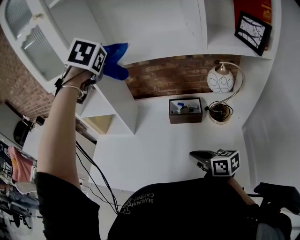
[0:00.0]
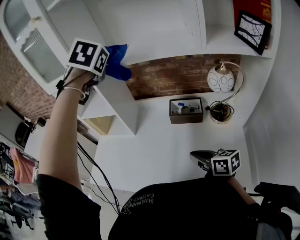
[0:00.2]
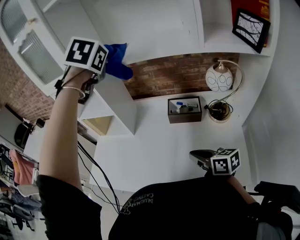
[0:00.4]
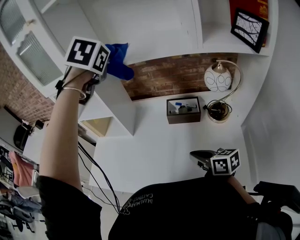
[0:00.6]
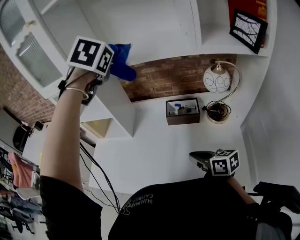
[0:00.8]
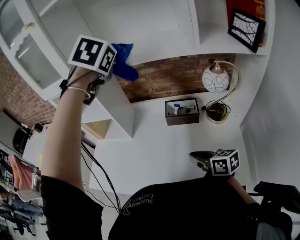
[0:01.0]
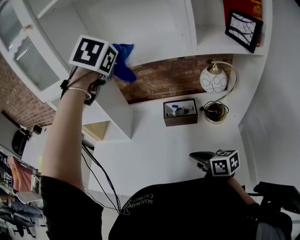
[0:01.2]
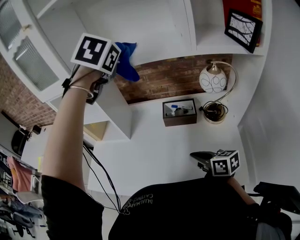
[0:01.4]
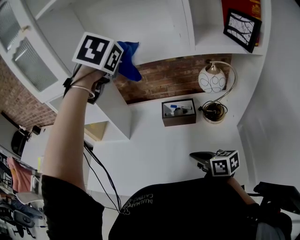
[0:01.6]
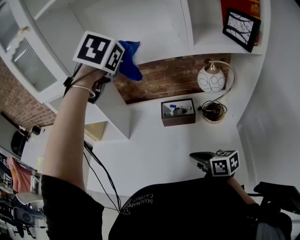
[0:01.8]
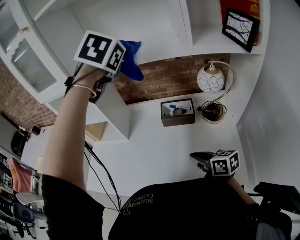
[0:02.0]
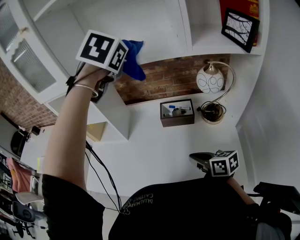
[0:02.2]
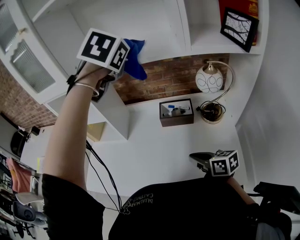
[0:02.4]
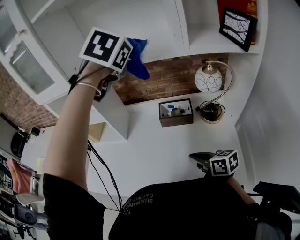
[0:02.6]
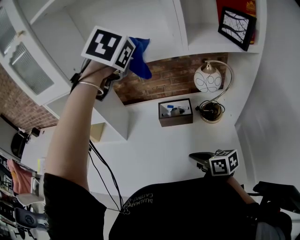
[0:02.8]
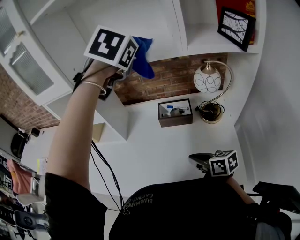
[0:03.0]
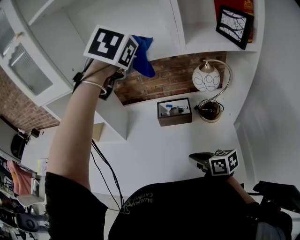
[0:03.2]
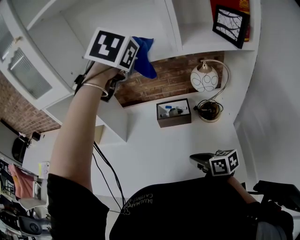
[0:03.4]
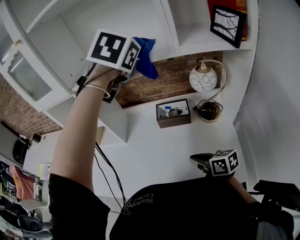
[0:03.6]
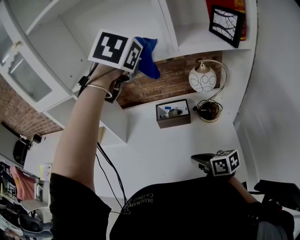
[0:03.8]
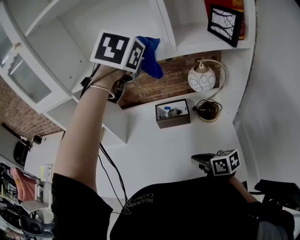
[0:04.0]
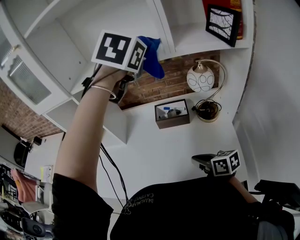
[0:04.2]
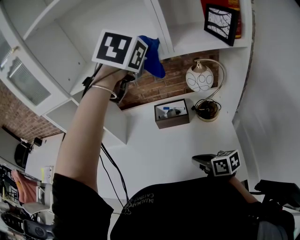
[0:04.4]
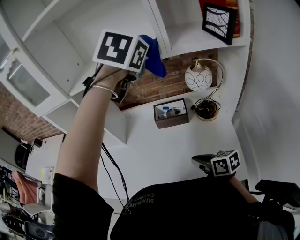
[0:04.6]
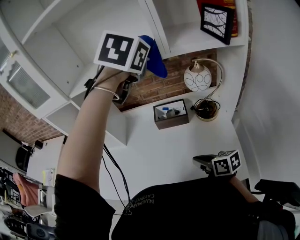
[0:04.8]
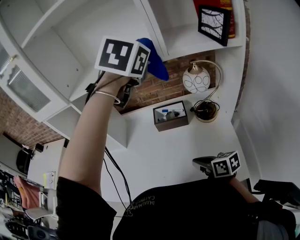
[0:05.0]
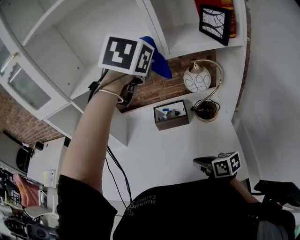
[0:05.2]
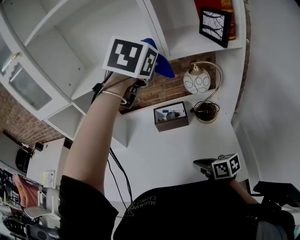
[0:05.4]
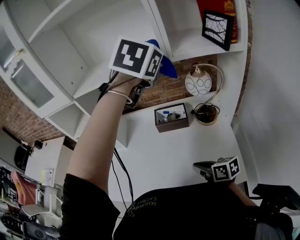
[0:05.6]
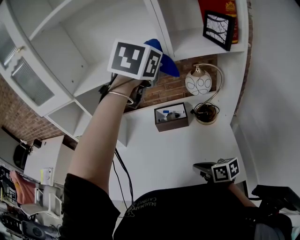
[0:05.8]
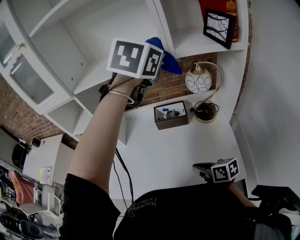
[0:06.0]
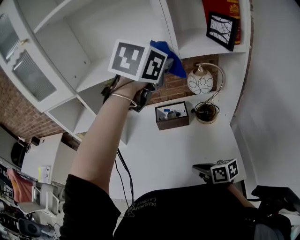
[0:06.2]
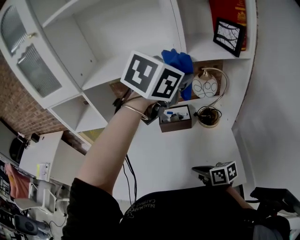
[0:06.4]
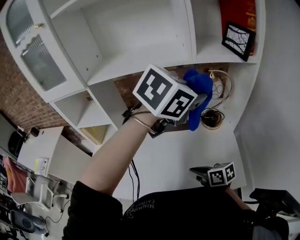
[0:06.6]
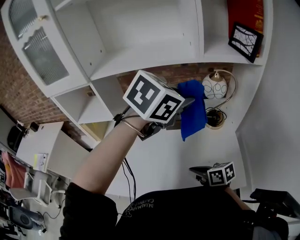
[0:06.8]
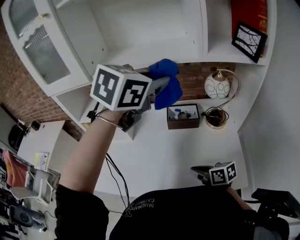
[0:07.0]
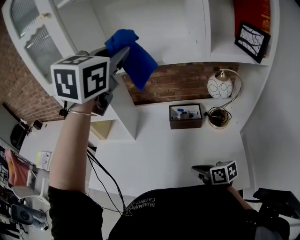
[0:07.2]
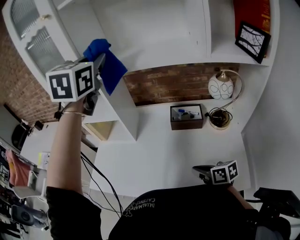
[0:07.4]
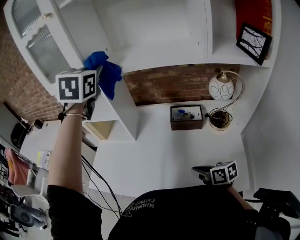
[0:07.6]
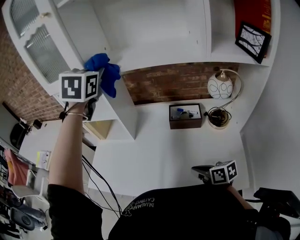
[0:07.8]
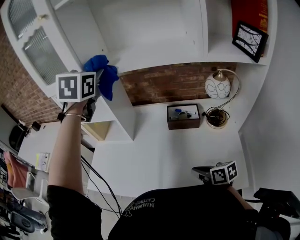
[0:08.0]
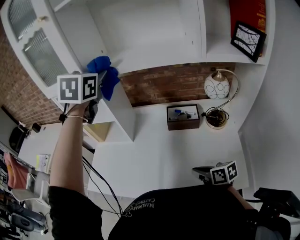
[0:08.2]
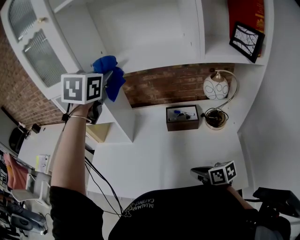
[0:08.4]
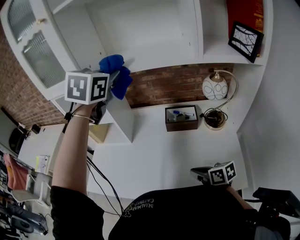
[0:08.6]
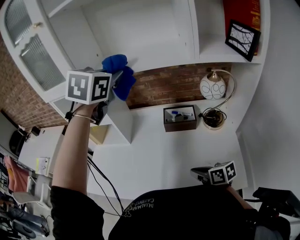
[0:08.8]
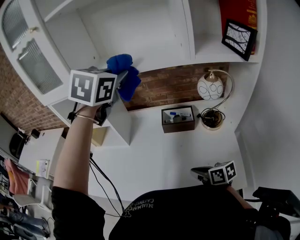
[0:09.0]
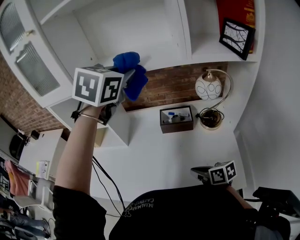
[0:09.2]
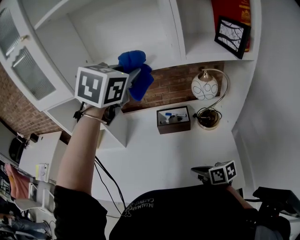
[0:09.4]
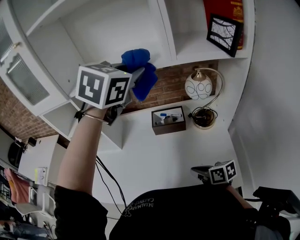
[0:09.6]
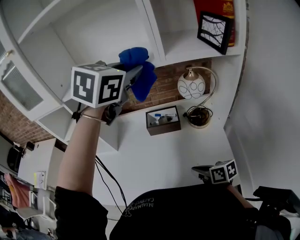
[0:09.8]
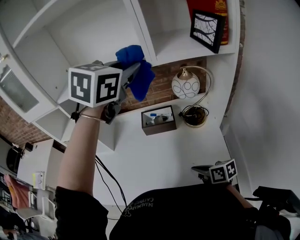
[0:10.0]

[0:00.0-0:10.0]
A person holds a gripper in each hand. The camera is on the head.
0:00.0 to 0:01.4: The left gripper goes some 10 cm to the right.
0:01.4 to 0:02.8: The left gripper heads to the right, covering some 5 cm.
0:02.8 to 0:04.2: The left gripper goes approximately 5 cm to the right.
0:04.2 to 0:05.8: The left gripper moves roughly 5 cm.
0:05.8 to 0:07.2: The left gripper shifts some 20 cm to the left. The right gripper goes about 5 cm to the left.
0:07.2 to 0:08.6: The left gripper moves downward and forward, some 10 cm.
0:08.6 to 0:10.0: The right gripper goes roughly 10 cm to the right, while the left gripper heads to the right, covering some 25 cm, and rotates approximately 20 degrees.

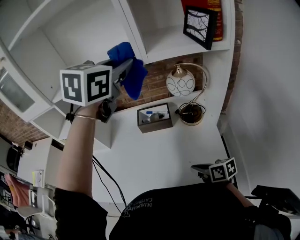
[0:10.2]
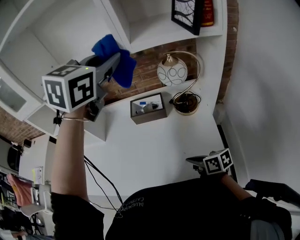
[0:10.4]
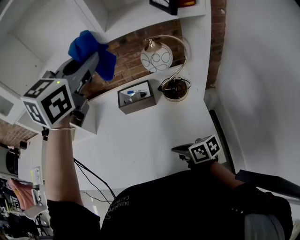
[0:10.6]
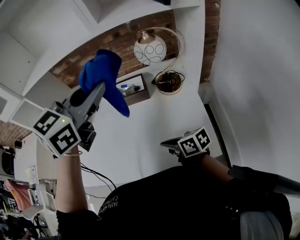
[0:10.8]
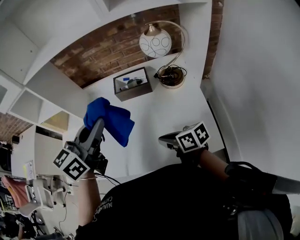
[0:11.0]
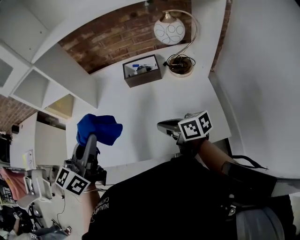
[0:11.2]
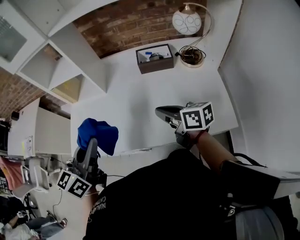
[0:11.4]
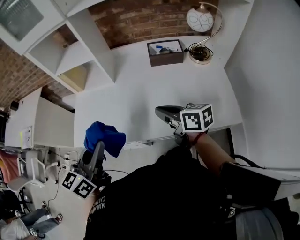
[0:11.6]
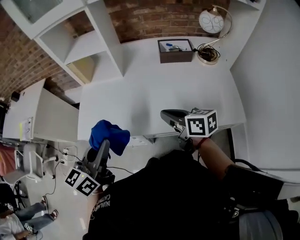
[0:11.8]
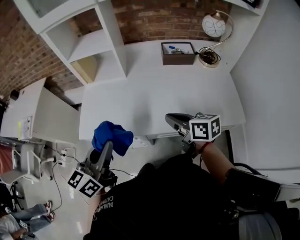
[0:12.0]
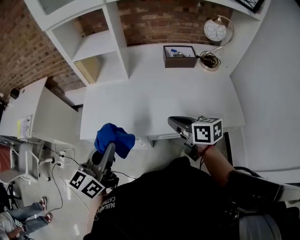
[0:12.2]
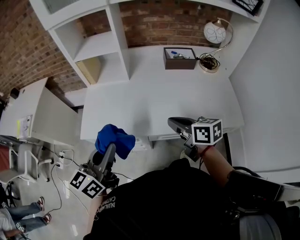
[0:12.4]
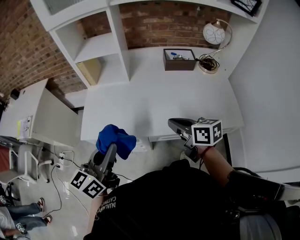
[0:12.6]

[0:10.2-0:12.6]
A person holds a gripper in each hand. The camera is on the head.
0:10.2 to 0:11.4: The left gripper travels to the left, backward and downward by about 50 cm, and swivels about 40 degrees. Meanwhile the right gripper shifts roughly 20 cm to the left.
0:11.4 to 0:12.6: The left gripper shifts about 15 cm to the left, backward and downward. The right gripper shifts approximately 15 cm to the left and backward.

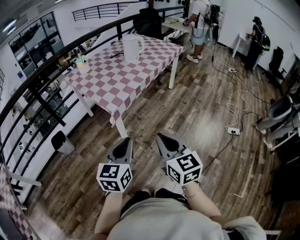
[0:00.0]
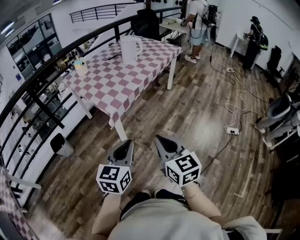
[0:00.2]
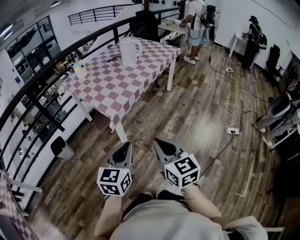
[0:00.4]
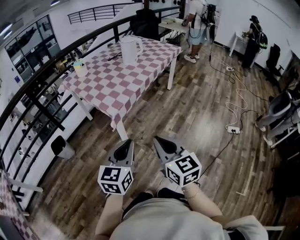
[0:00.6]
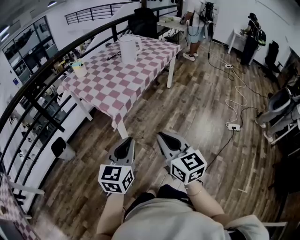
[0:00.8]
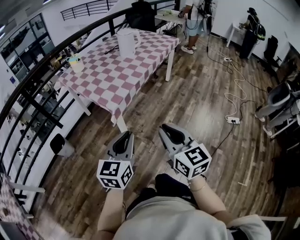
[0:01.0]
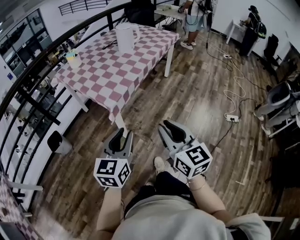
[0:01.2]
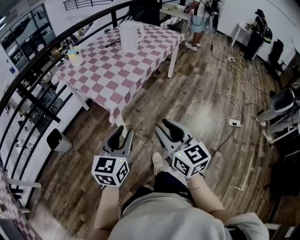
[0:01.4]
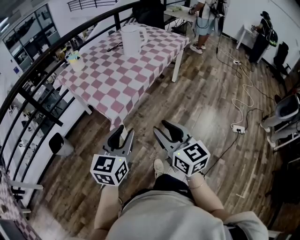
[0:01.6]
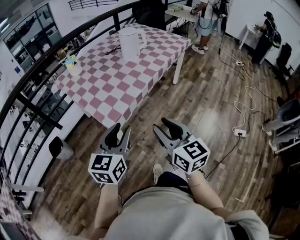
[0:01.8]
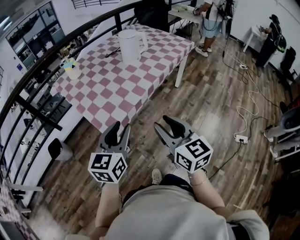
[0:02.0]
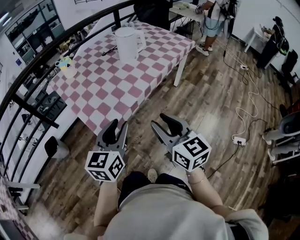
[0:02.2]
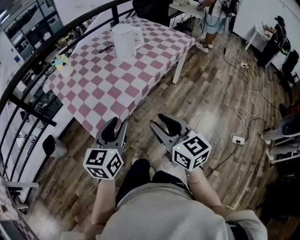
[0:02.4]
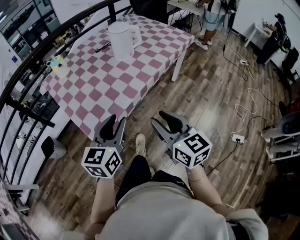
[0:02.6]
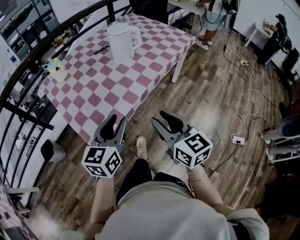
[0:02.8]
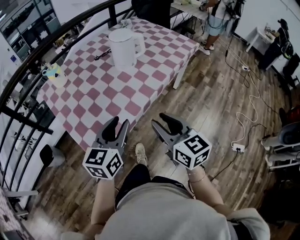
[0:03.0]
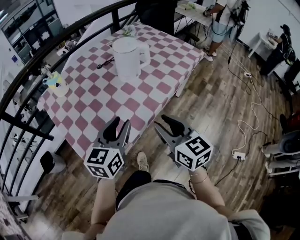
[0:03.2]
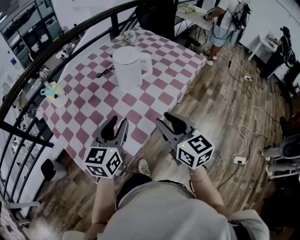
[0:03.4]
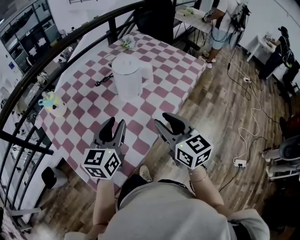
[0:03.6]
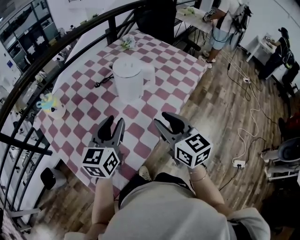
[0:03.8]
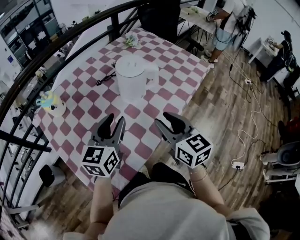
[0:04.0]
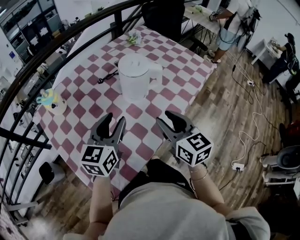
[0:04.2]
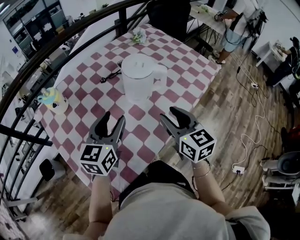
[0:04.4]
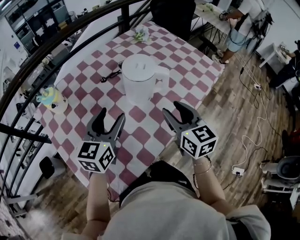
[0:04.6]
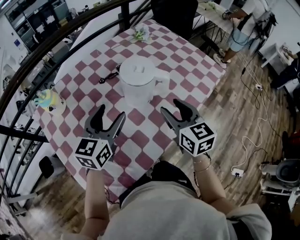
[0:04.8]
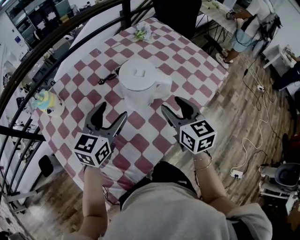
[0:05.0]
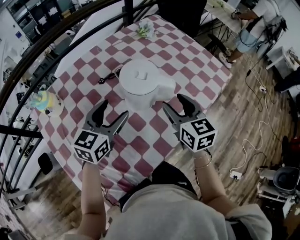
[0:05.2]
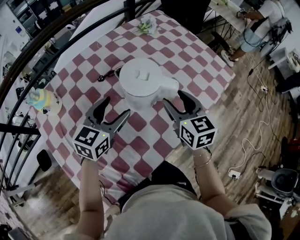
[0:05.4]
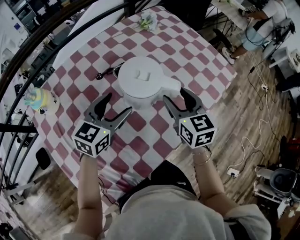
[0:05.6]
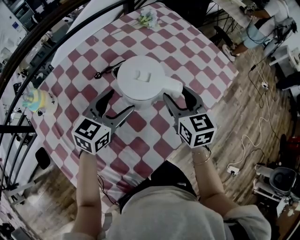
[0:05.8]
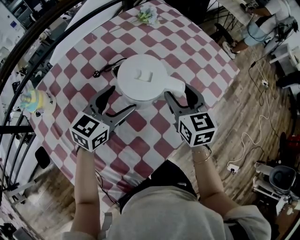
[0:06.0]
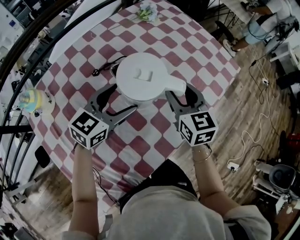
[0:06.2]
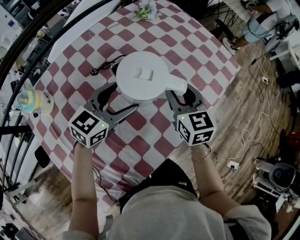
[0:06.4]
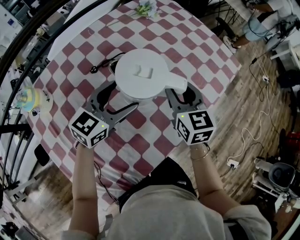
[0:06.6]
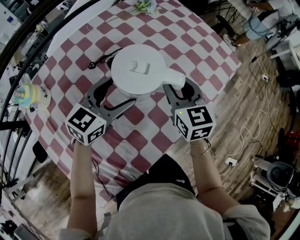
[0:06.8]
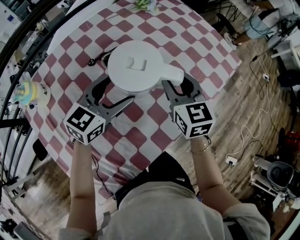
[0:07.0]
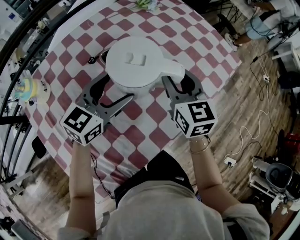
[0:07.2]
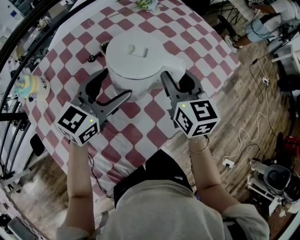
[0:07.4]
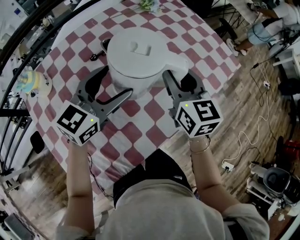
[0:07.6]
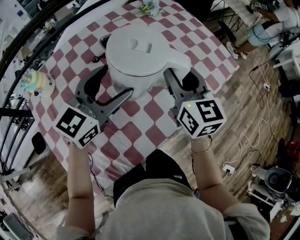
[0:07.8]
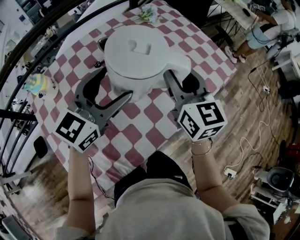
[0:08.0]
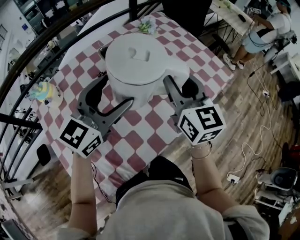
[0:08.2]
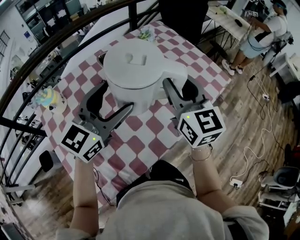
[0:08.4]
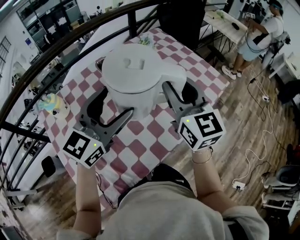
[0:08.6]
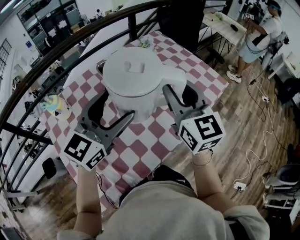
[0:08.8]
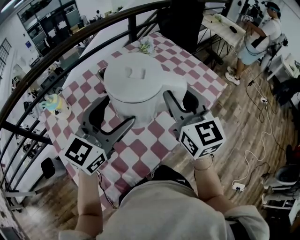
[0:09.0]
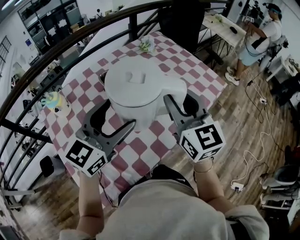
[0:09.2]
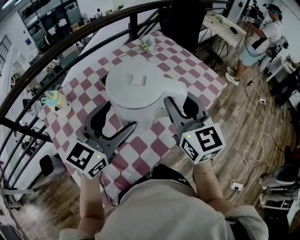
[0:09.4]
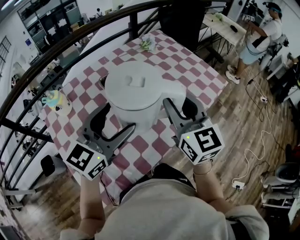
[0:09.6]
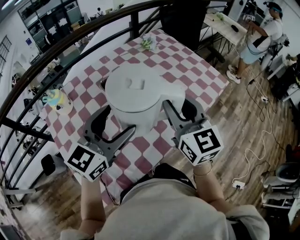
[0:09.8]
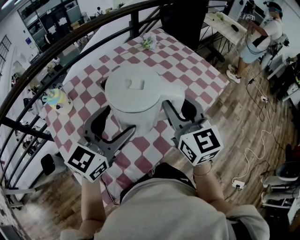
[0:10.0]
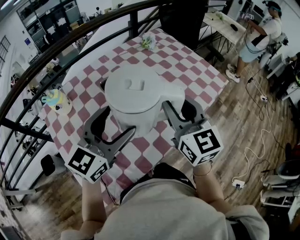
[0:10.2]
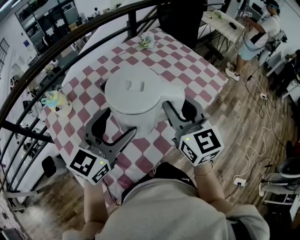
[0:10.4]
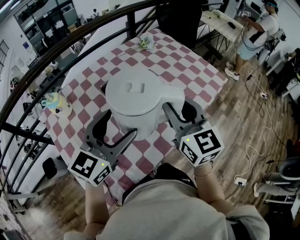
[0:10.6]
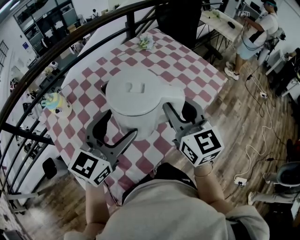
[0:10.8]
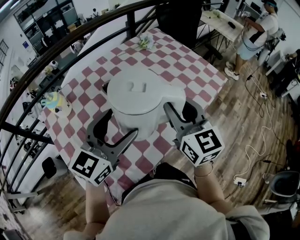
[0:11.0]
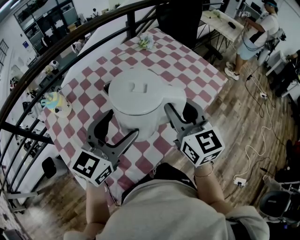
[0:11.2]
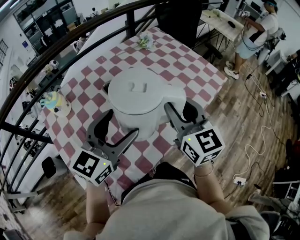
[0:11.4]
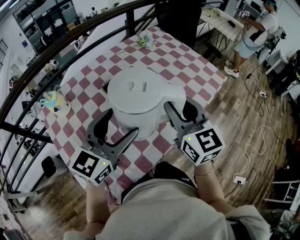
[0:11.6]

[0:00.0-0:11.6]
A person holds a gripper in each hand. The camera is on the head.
0:00.0 to 0:01.4: The grippers both shift forward by about 10 cm. The right gripper opens its fingers.
0:01.4 to 0:02.8: The left gripper travels forward by some 25 cm. Meanwhile the right gripper travels forward and to the right by some 30 cm.
0:02.8 to 0:04.4: The grippers both shift forward by about 30 cm.
0:04.4 to 0:05.8: The right gripper is displaced forward by about 20 cm. Meanwhile the left gripper shifts some 15 cm forward and downward, and opens up.
0:05.8 to 0:07.2: The right gripper closes its fingers.
0:07.2 to 0:08.8: The grippers both shift upward and backward by roughly 20 cm. The right gripper changes its angle by roughly 20 degrees.
0:08.8 to 0:10.2: The grippers both shift backward by roughly 5 cm.
0:10.2 to 0:11.6: The grippers make only small movements.
